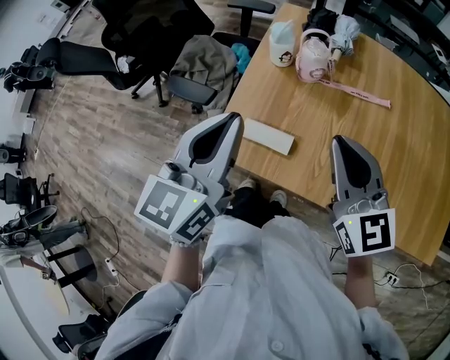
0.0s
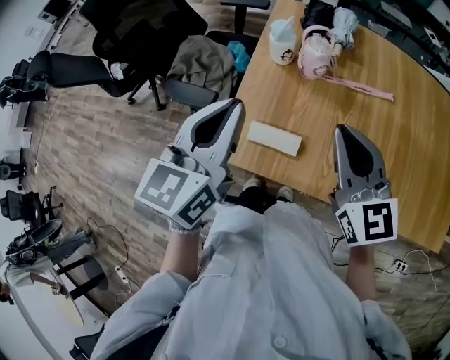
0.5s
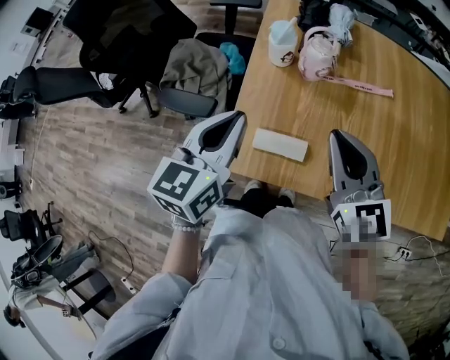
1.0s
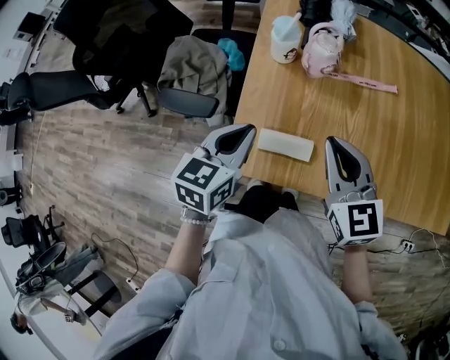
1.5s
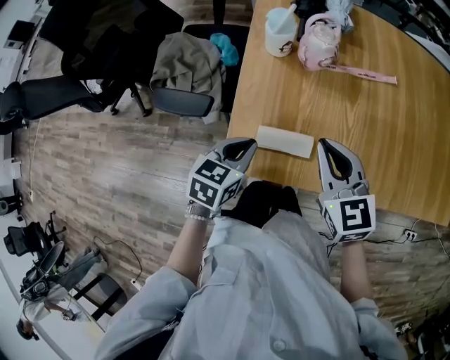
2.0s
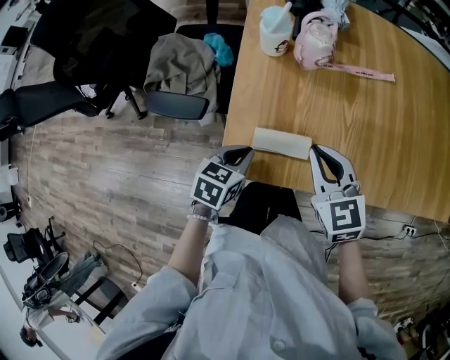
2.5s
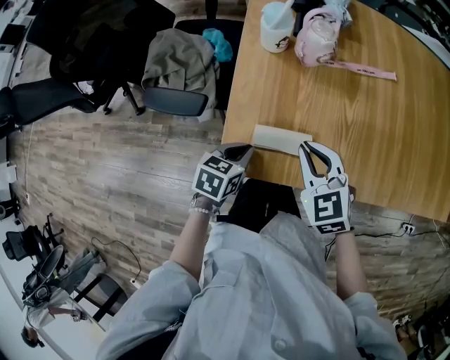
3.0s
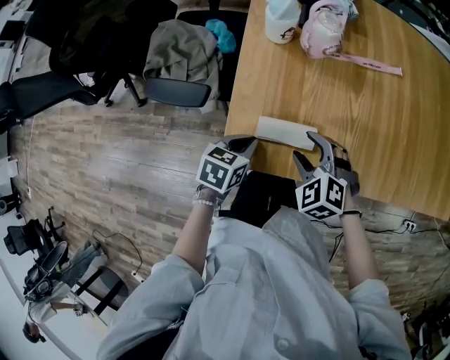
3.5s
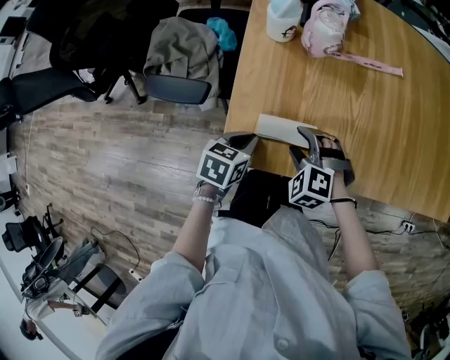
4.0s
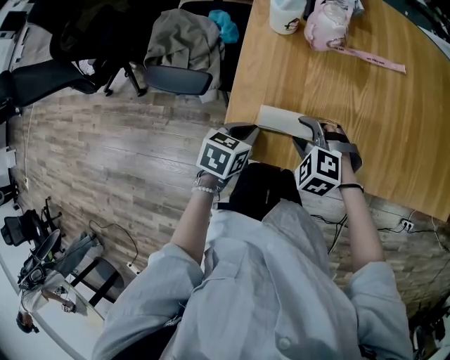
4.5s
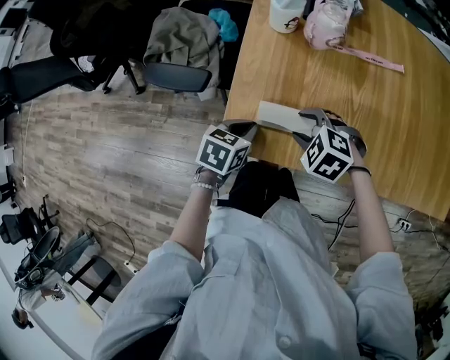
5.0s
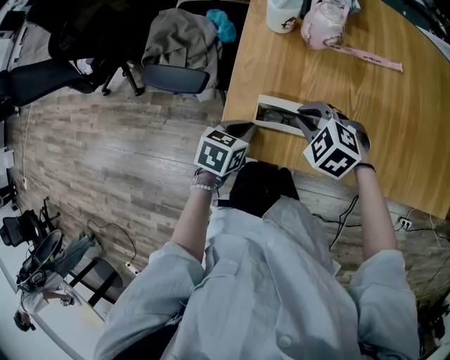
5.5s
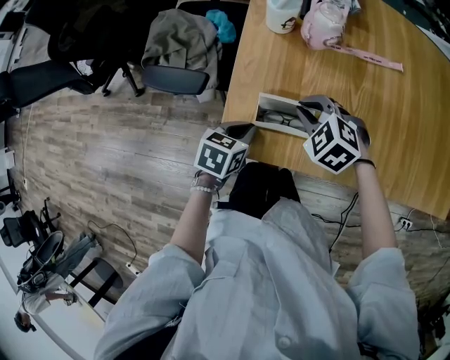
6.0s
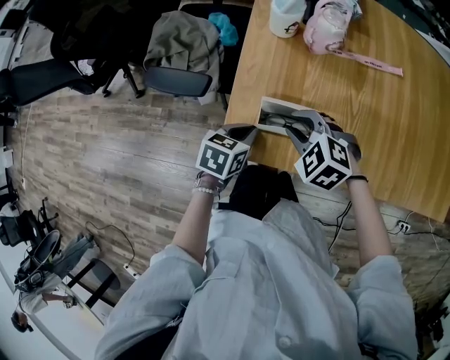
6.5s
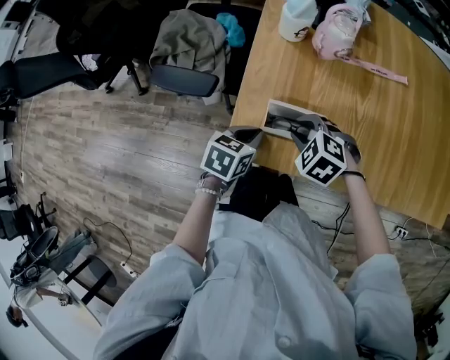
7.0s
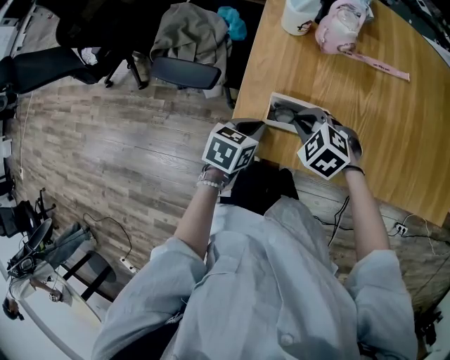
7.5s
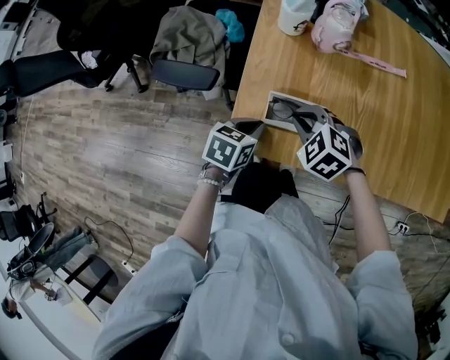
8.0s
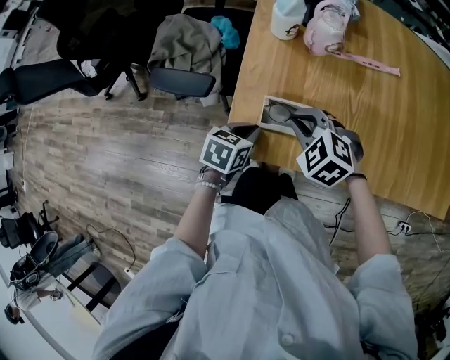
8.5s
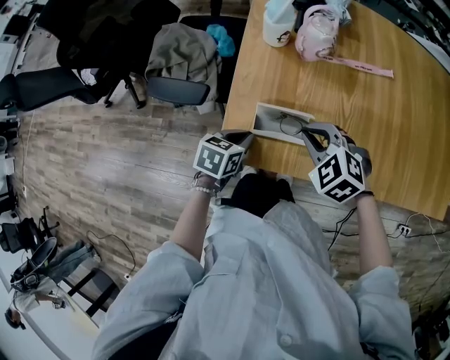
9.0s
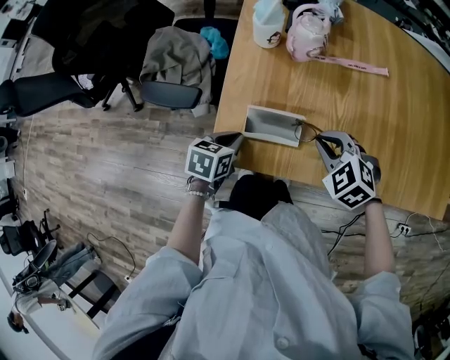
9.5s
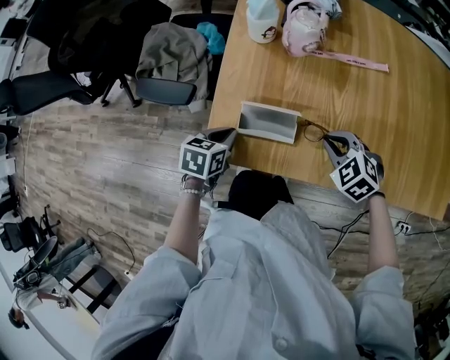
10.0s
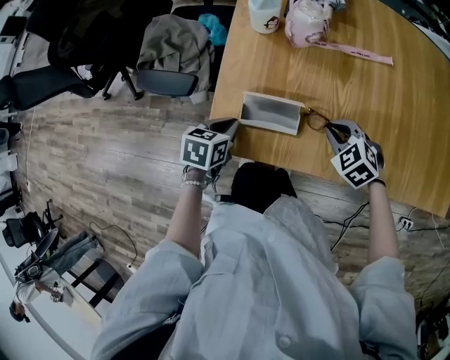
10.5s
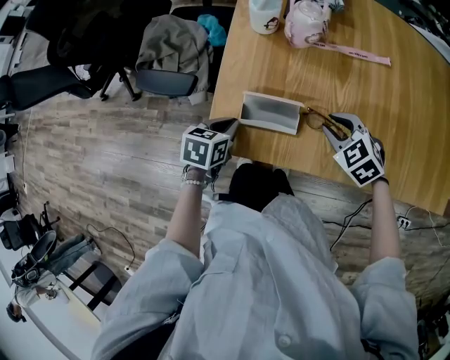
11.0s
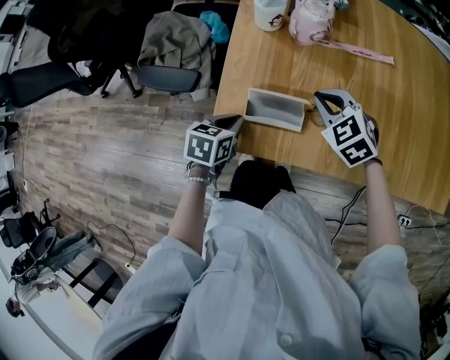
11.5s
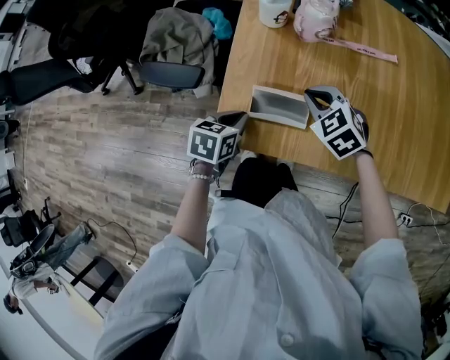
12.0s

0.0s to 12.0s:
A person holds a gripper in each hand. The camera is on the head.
0.0s to 2.0s: The left gripper is displaced downward by about 25 cm, and tips its fingers downward by some 30 degrees; the right gripper is displaced downward and to the left by some 15 cm, and turns by approximately 20 degrees.
2.0s to 4.0s: The right gripper moves downward, some 20 cm, twists about 50 degrees counterclockwise, seen from behind, and opens. Meanwhile the left gripper travels downward by about 10 cm.
4.0s to 6.0s: The right gripper heads forward, covering some 5 cm, and closes its fingers.
6.0s to 8.0s: The grippers stay close to where they were, moving slightly.
8.0s to 10.0s: The right gripper travels to the right by some 15 cm.
10.0s to 12.0s: The right gripper heads to the left and forward, covering about 10 cm.

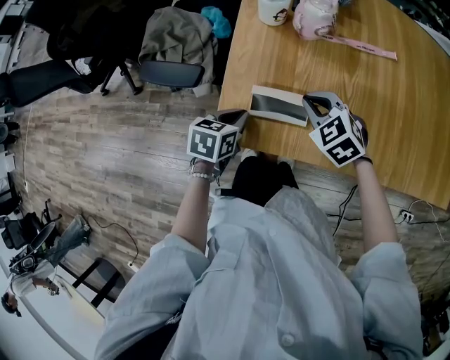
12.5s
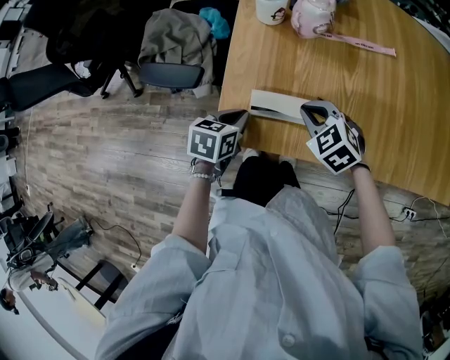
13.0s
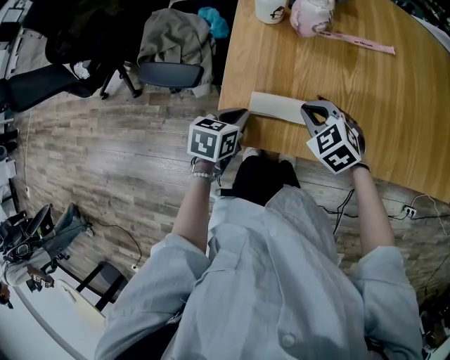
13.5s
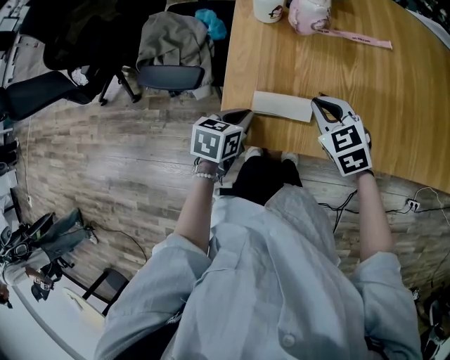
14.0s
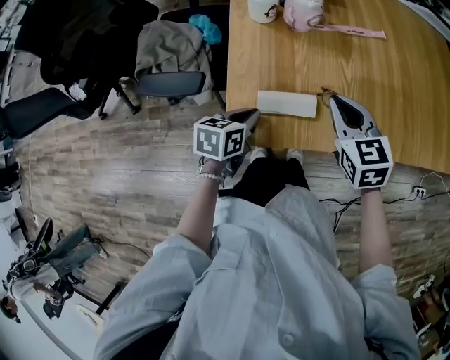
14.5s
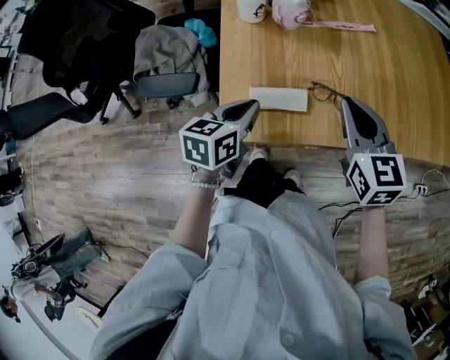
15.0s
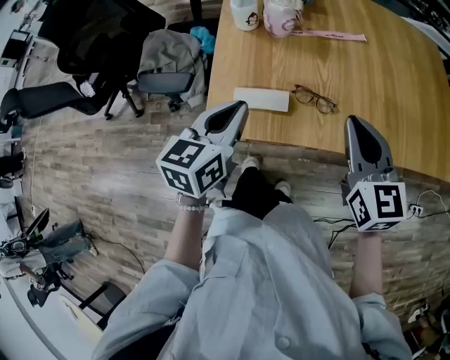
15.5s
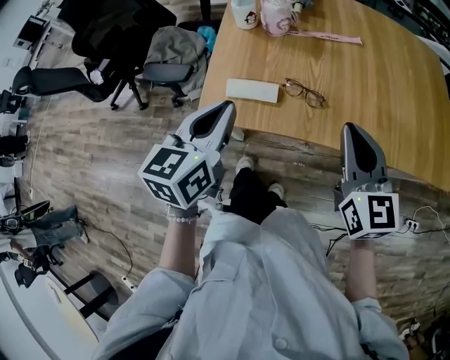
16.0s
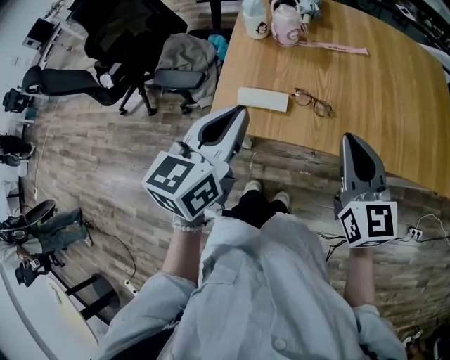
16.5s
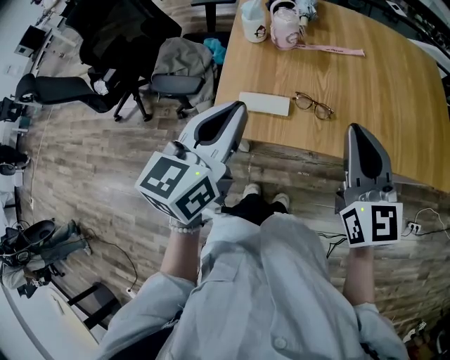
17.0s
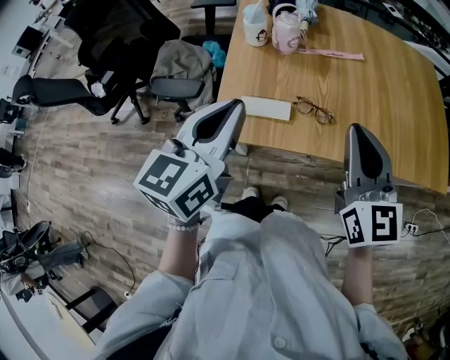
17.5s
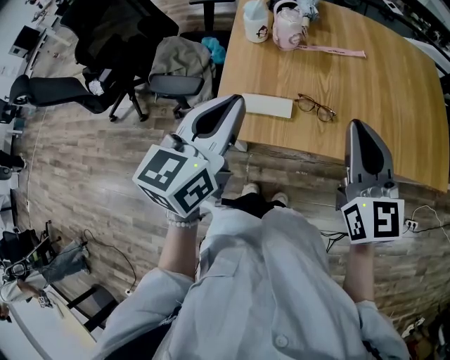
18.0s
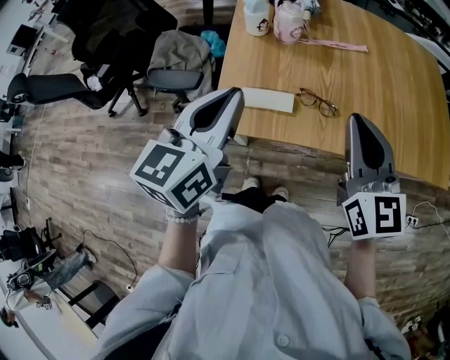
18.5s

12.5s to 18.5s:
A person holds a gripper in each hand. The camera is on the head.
12.5s to 14.5s: The right gripper shifts approximately 10 cm upward, and swivels some 40 degrees.
14.5s to 16.5s: The right gripper is displaced backward, upward and to the right by some 25 cm, and rotates approximately 20 degrees; the left gripper travels upward by some 30 cm, and turns by some 40 degrees.
16.5s to 18.5s: The left gripper changes place by some 5 cm. The right gripper ends up roughly 5 cm from where it was.

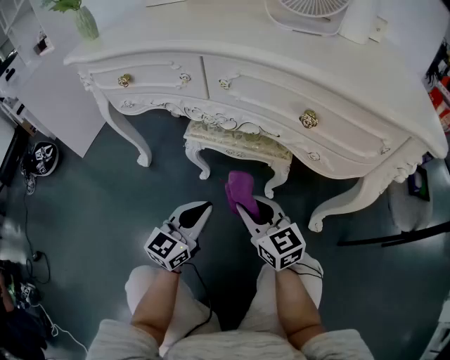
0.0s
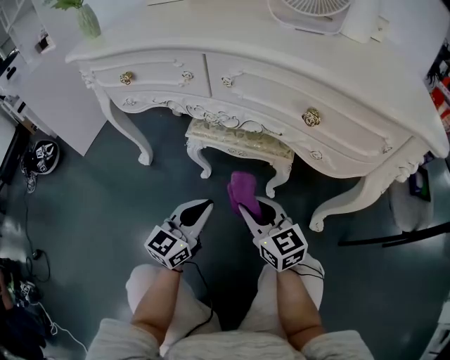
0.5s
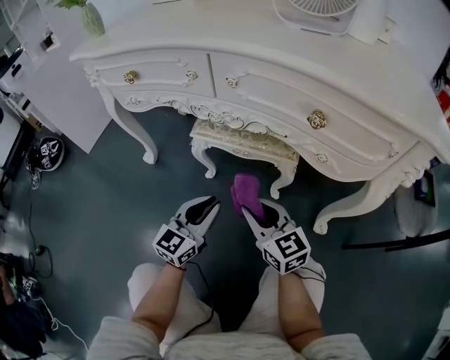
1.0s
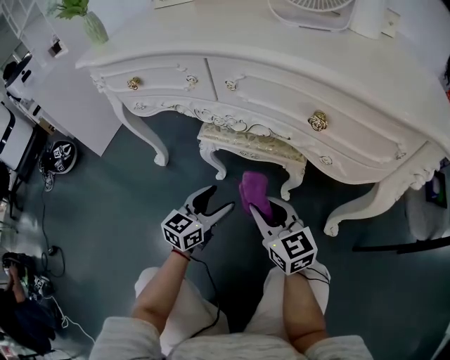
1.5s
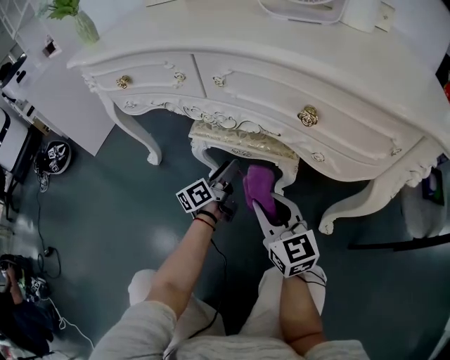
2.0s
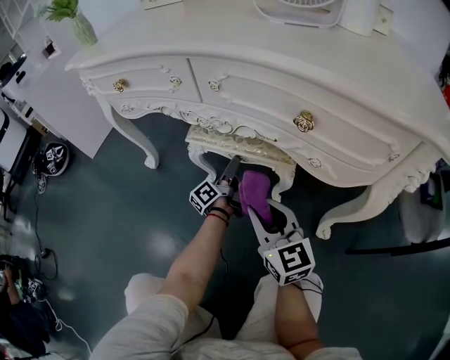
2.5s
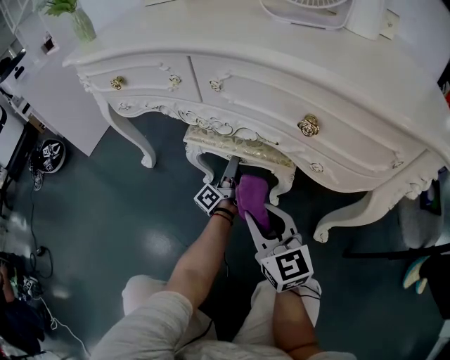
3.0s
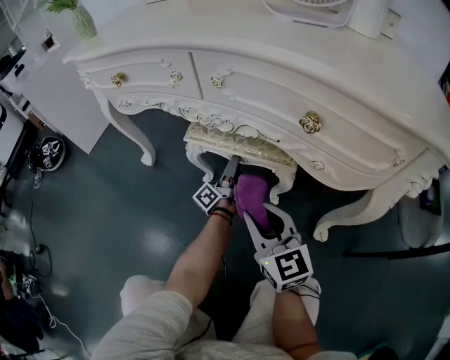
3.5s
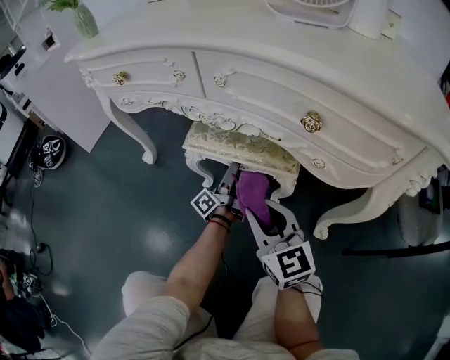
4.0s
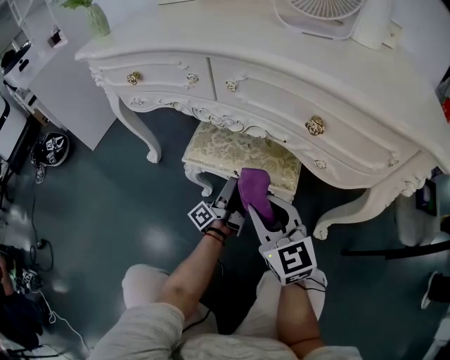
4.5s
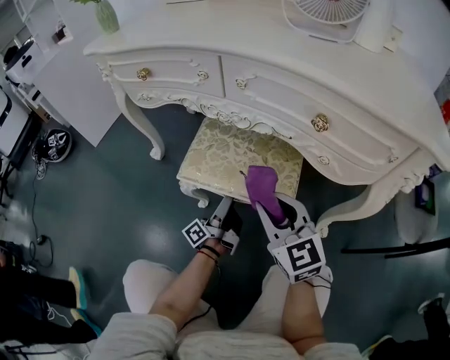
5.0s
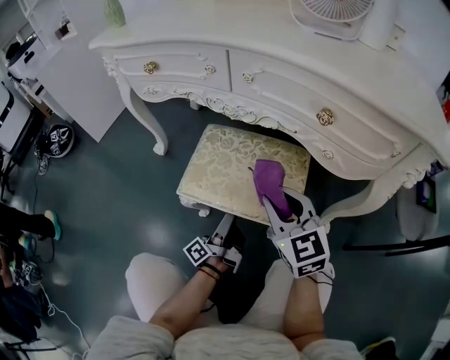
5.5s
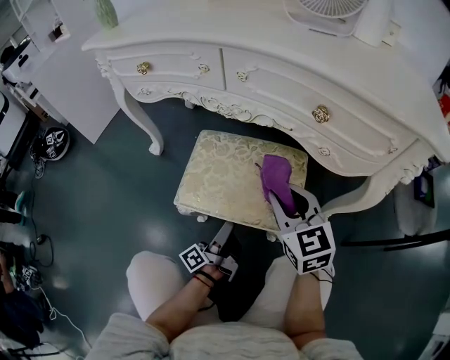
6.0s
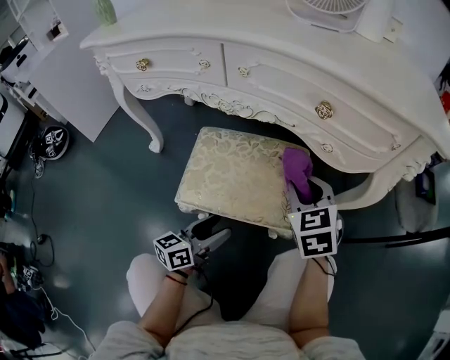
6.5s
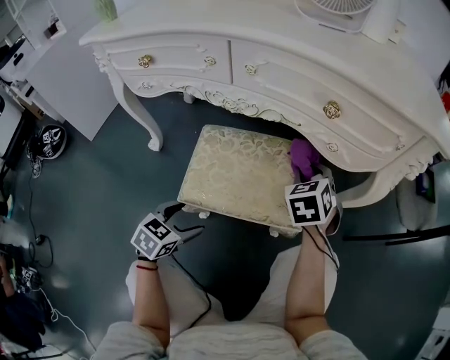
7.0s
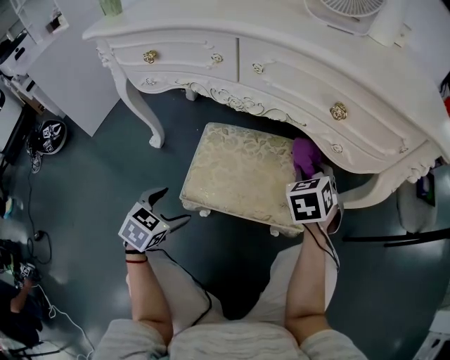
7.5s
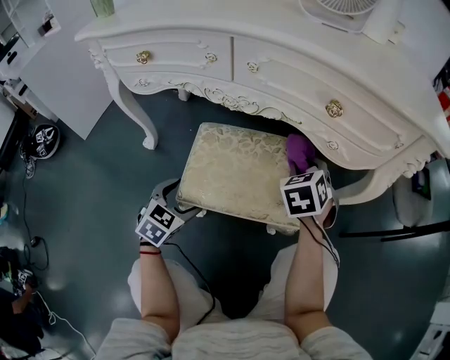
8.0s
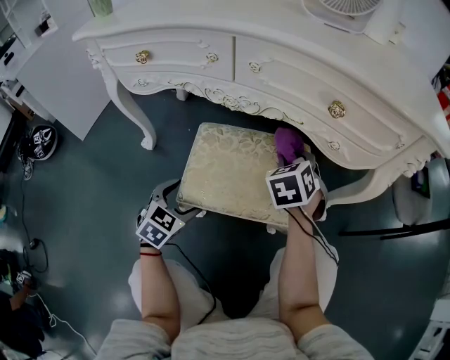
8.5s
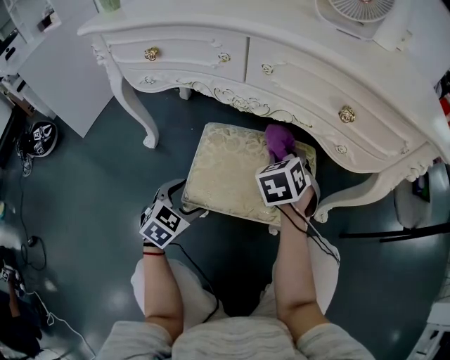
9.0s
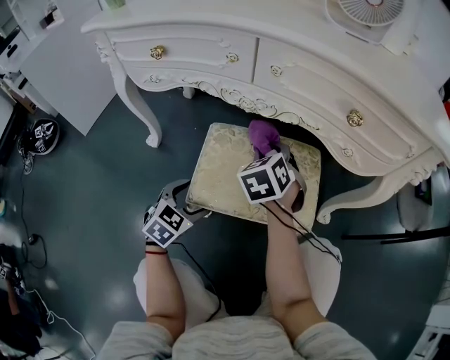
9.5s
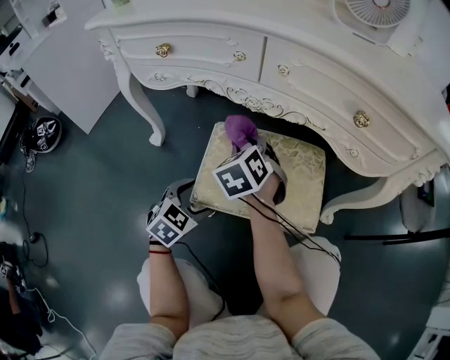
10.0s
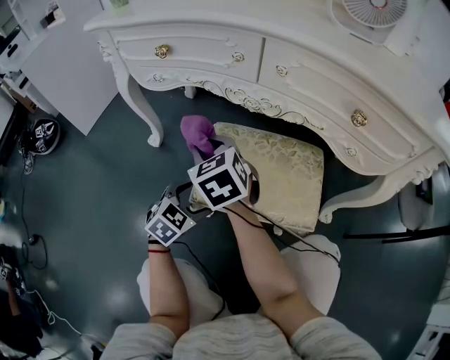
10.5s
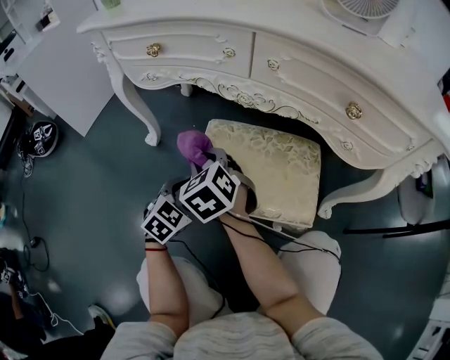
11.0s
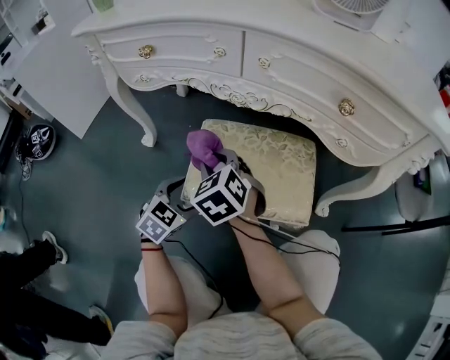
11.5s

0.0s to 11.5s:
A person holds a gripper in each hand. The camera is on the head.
0.0s to 2.0s: The left gripper goes roughly 20 cm forward and downward, rolls counterclockwise, seen from behind, by about 50 degrees, and opens.
2.0s to 4.0s: The left gripper turns by roughly 40 degrees.
4.0s to 6.0s: The left gripper travels backward by approximately 20 cm.
6.0s to 7.5s: The left gripper shifts by roughly 15 cm, tips its fingers downward by approximately 60 degrees, and opens up. The right gripper ends up approximately 10 cm from where it was, and turns by roughly 40 degrees.
7.5s to 9.5s: The right gripper heads to the left, covering approximately 15 cm; the left gripper ends up about 5 cm from where it was.
9.5s to 11.5s: The right gripper shifts about 15 cm to the left and backward, and changes its angle by approximately 20 degrees.
